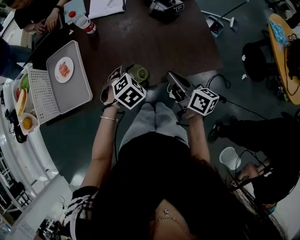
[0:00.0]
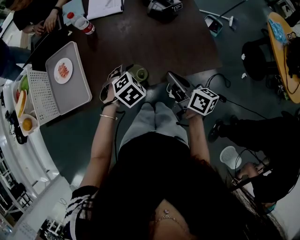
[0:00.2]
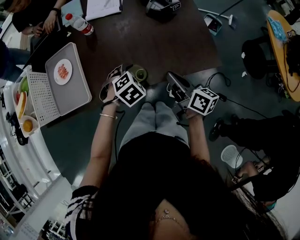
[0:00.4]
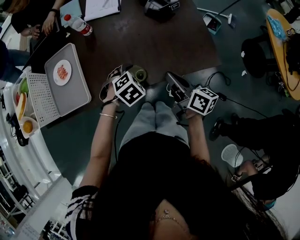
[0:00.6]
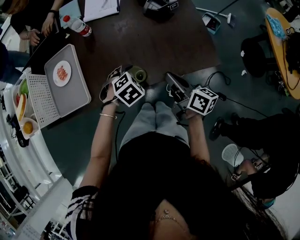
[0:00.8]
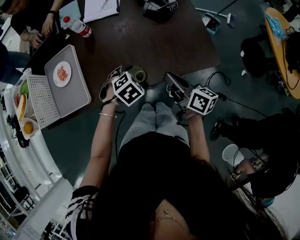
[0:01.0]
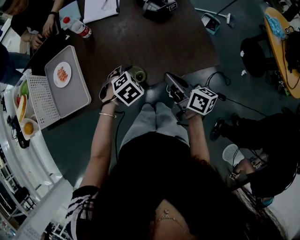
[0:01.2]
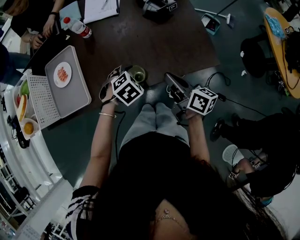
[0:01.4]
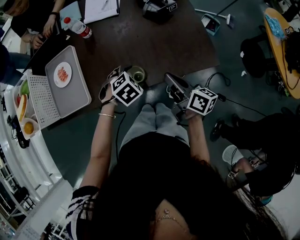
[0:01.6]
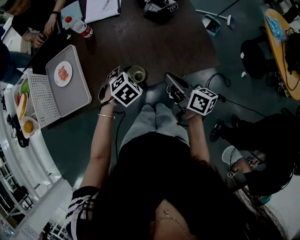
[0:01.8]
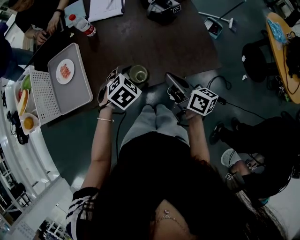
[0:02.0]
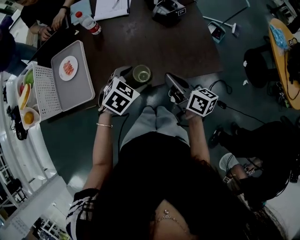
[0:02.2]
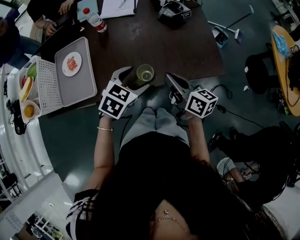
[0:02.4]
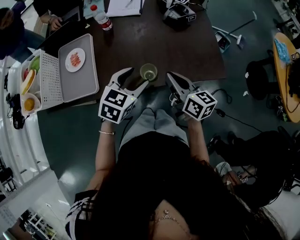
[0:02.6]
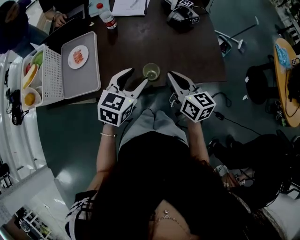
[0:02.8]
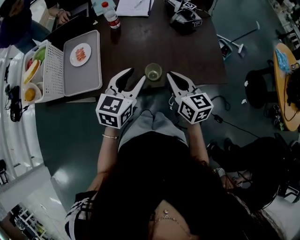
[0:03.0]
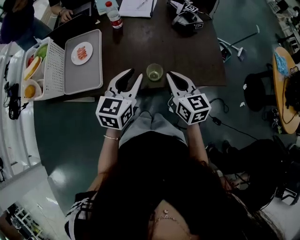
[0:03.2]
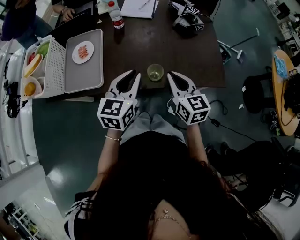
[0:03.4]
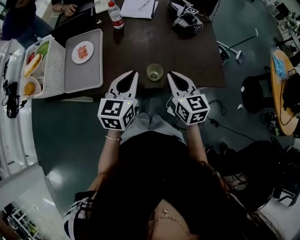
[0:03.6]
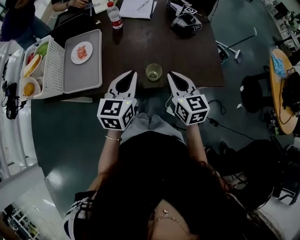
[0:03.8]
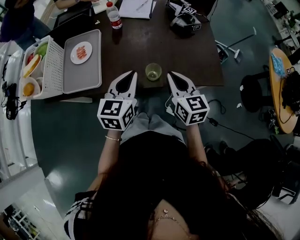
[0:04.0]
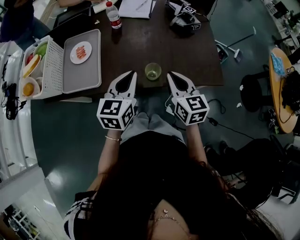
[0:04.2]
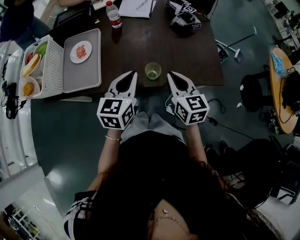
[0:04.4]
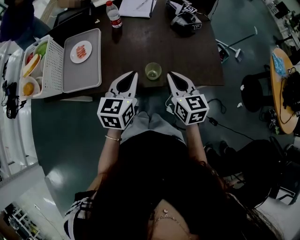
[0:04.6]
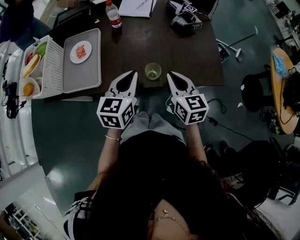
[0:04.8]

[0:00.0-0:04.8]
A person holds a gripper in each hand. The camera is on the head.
0.0 to 1.6 s: There are only small adjustments of the grippers.
1.6 to 3.2 s: The left gripper is displaced upward and to the left by some 20 cm, points its fingers about 50 degrees further upward, and closes its fingers, while the right gripper shifts some 10 cm to the left and upward, and rolls counterclockwise, seen from behind, by approximately 40 degrees.
3.2 to 4.8 s: There are only small adjustments of the grippers.

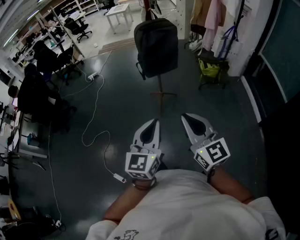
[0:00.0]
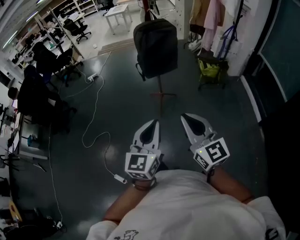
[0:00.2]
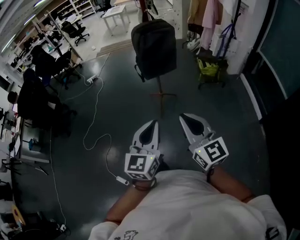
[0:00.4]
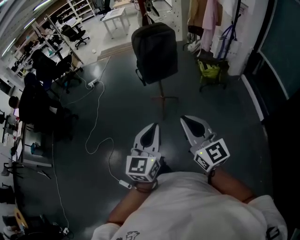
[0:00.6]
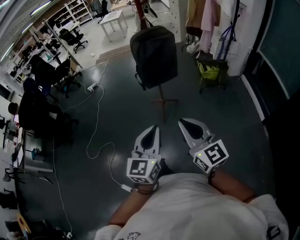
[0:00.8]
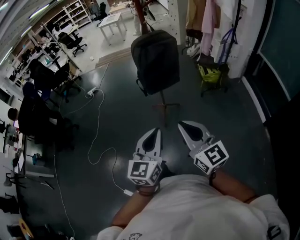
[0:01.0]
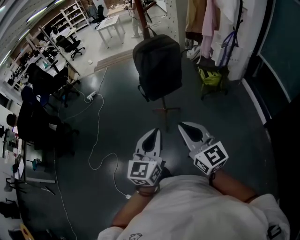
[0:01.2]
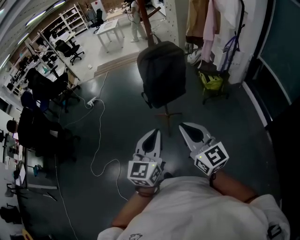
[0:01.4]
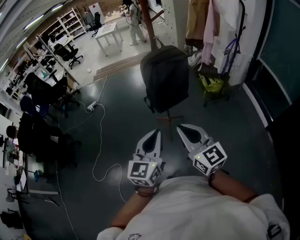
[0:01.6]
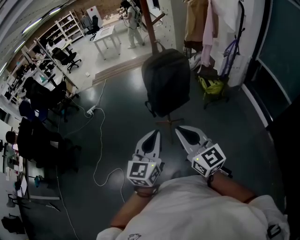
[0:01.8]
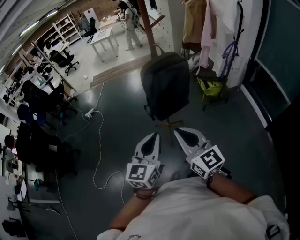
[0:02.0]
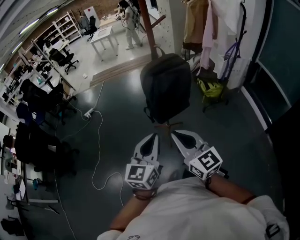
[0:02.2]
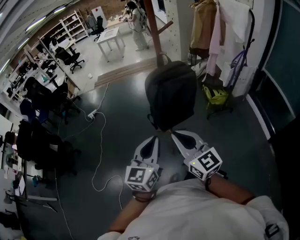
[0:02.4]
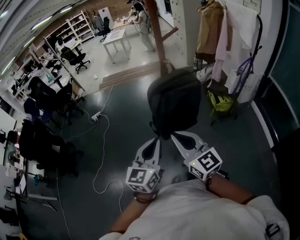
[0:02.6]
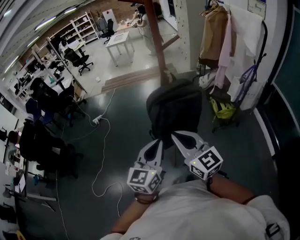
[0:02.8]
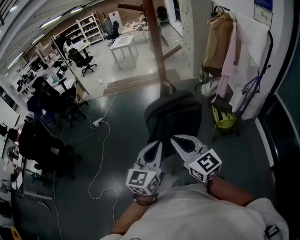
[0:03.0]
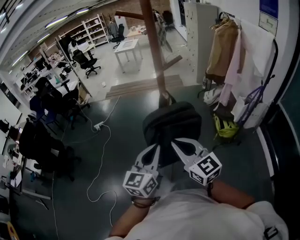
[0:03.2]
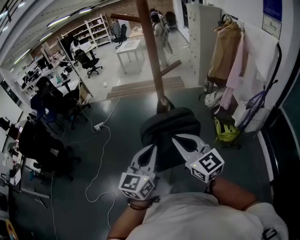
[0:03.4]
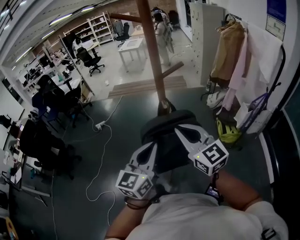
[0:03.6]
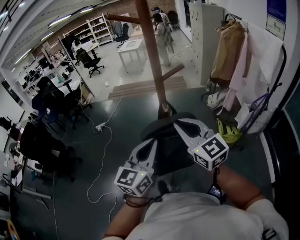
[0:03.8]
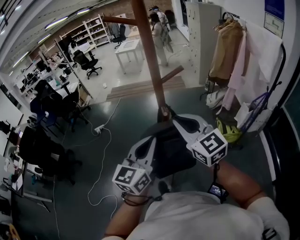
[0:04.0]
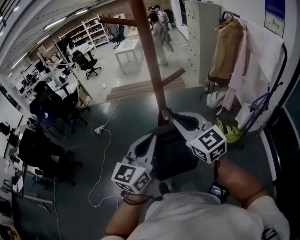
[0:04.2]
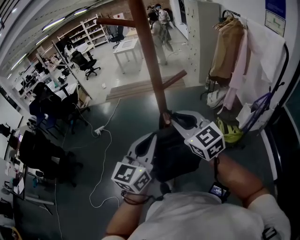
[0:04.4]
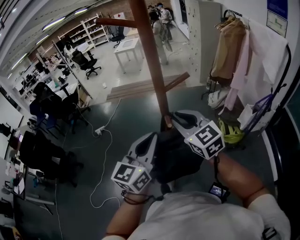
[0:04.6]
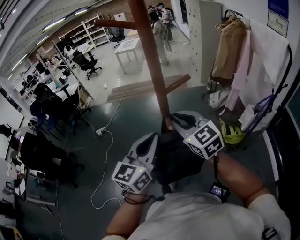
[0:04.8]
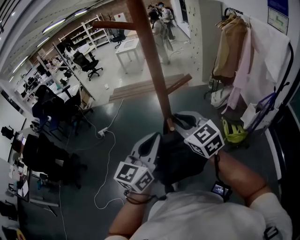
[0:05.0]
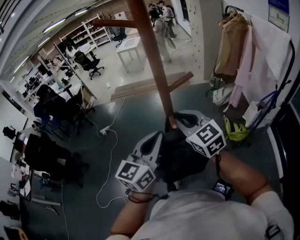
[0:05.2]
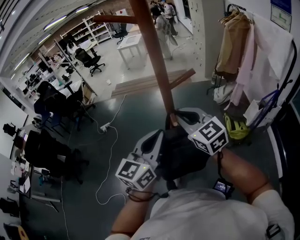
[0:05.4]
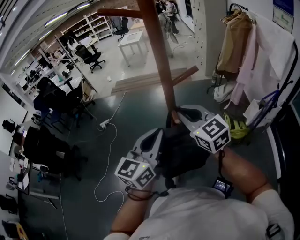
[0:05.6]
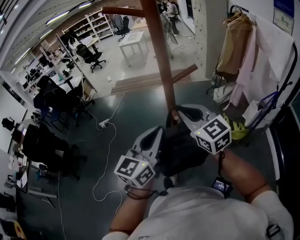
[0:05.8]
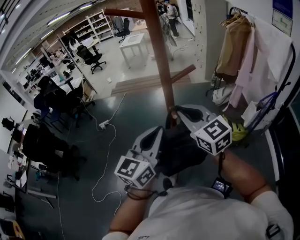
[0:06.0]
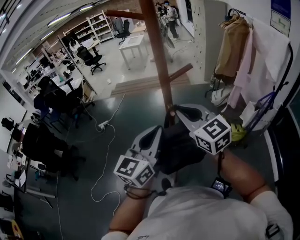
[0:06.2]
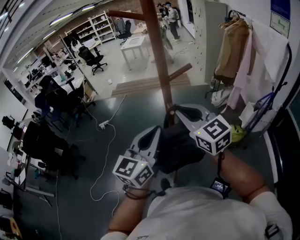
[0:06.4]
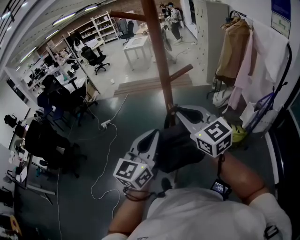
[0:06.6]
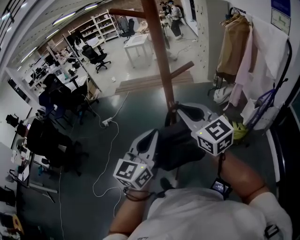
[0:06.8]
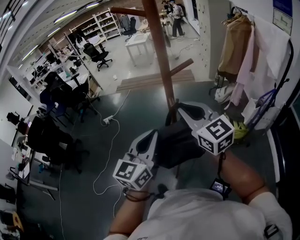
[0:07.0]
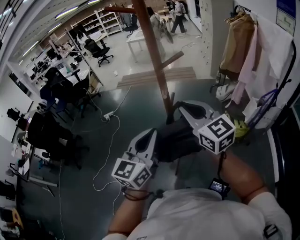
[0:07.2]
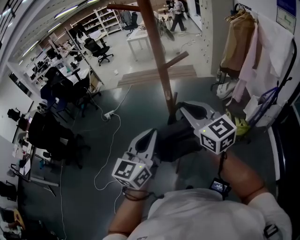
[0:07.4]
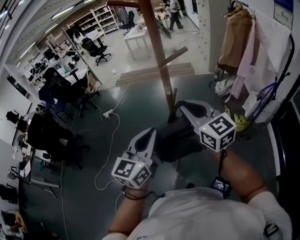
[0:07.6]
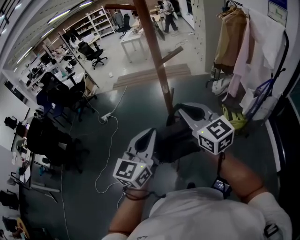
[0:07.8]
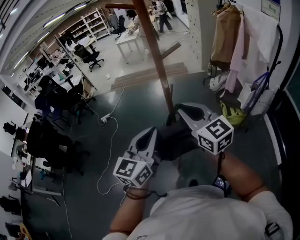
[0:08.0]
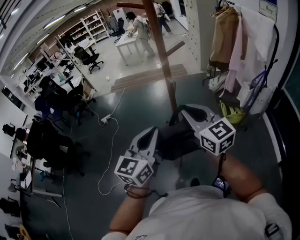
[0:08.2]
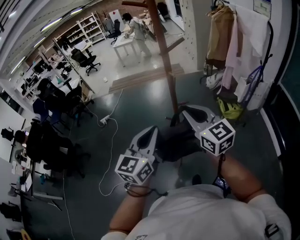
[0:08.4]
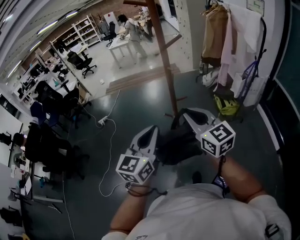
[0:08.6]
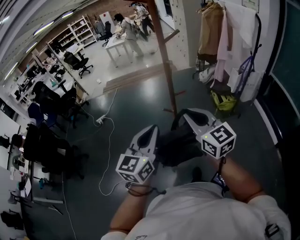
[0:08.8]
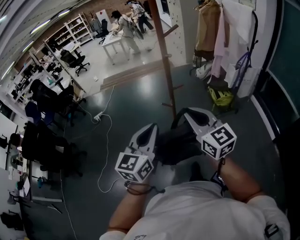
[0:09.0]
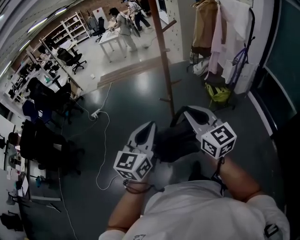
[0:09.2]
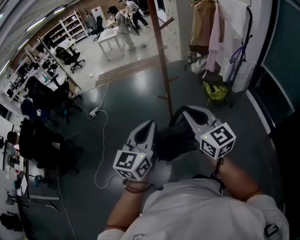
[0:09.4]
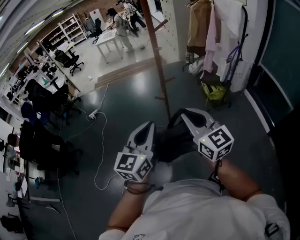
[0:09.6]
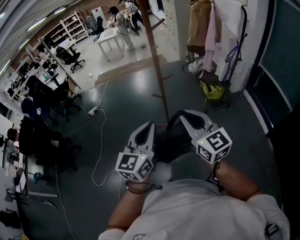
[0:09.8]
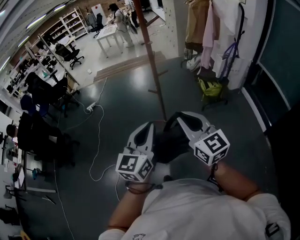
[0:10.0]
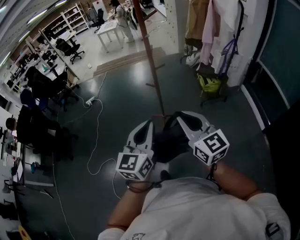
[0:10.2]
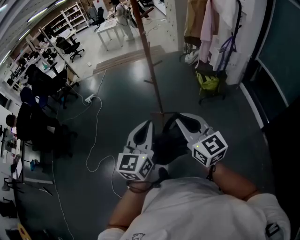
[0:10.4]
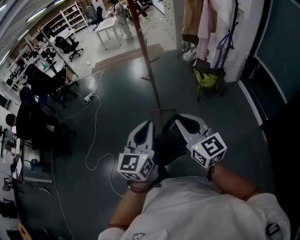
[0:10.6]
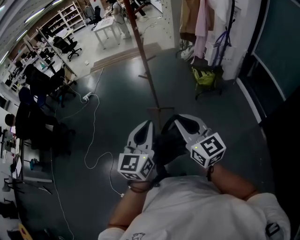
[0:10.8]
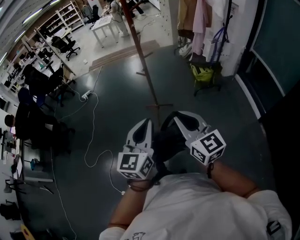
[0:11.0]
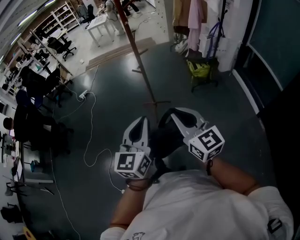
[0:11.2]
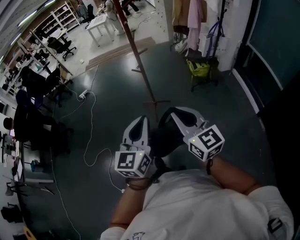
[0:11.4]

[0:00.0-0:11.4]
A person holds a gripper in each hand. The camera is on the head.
0.0 to 1.4 s: The two grippers go approximately 20 cm forward.
1.4 to 2.8 s: Both grippers travel together forward, some 25 cm.
2.8 to 4.2 s: The right gripper is displaced forward and to the right by roughly 25 cm; the left gripper travels forward and upward by approximately 20 cm.
4.2 to 5.6 s: The right gripper goes some 5 cm forward.
5.6 to 7.2 s: The two grippers go about 10 cm backward.
7.2 to 8.6 s: The grippers both shift backward and to the left by approximately 20 cm.
8.6 to 10.0 s: Both grippers travel together backward, about 20 cm.
10.0 to 11.4 s: Both grippers move backward and to the right, some 15 cm.

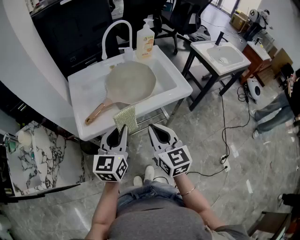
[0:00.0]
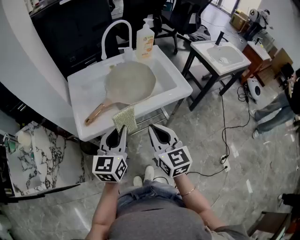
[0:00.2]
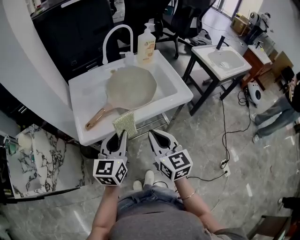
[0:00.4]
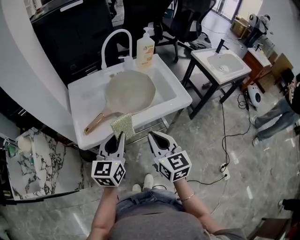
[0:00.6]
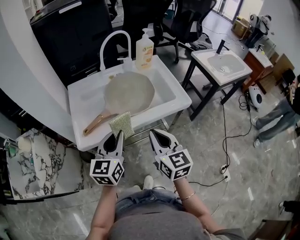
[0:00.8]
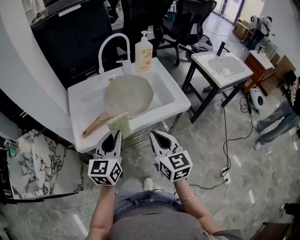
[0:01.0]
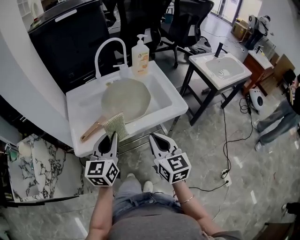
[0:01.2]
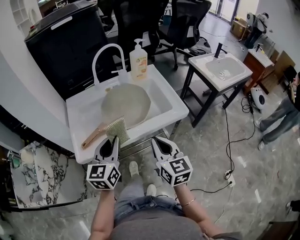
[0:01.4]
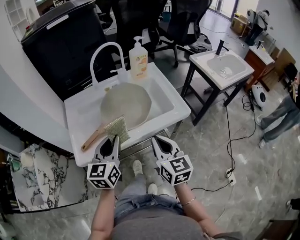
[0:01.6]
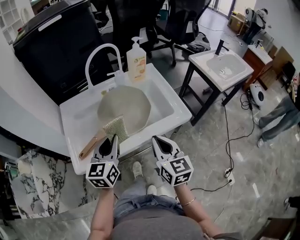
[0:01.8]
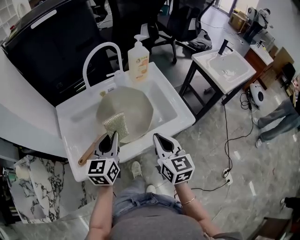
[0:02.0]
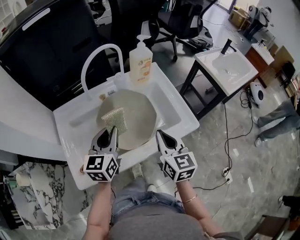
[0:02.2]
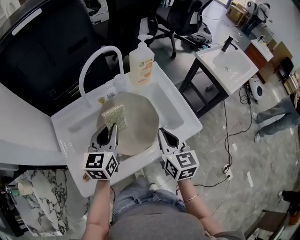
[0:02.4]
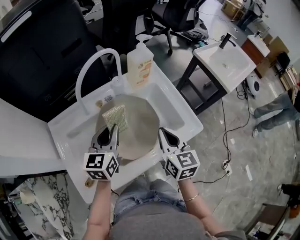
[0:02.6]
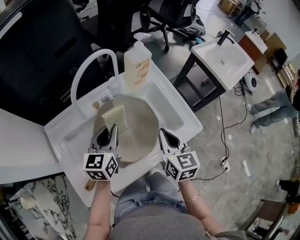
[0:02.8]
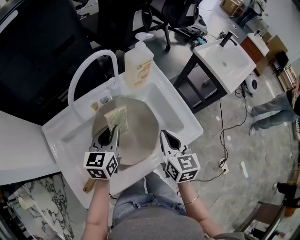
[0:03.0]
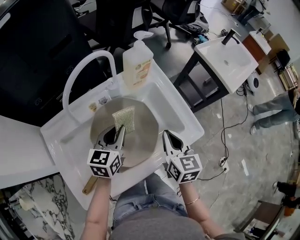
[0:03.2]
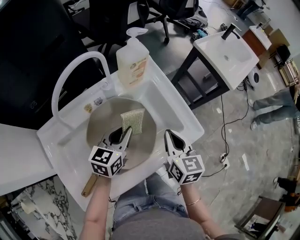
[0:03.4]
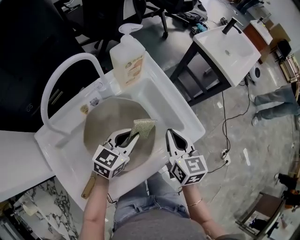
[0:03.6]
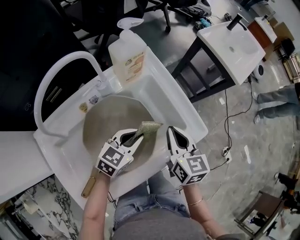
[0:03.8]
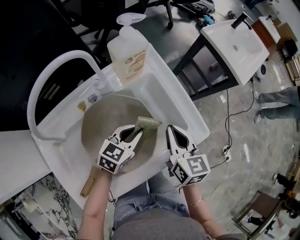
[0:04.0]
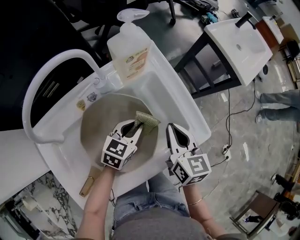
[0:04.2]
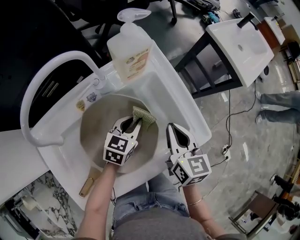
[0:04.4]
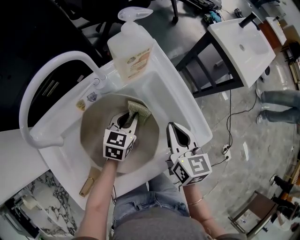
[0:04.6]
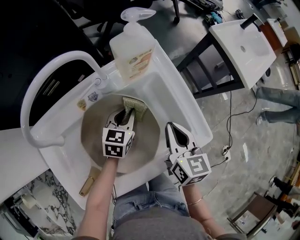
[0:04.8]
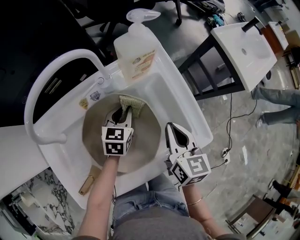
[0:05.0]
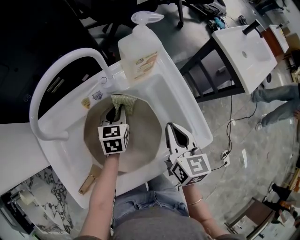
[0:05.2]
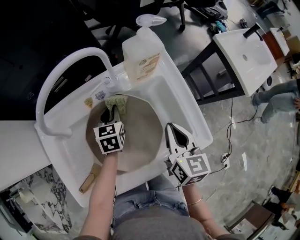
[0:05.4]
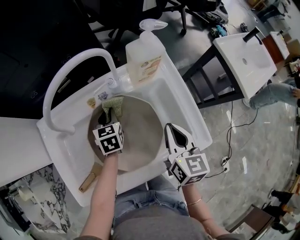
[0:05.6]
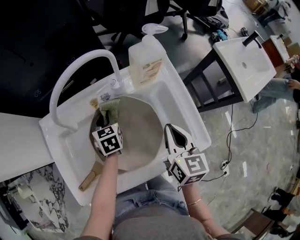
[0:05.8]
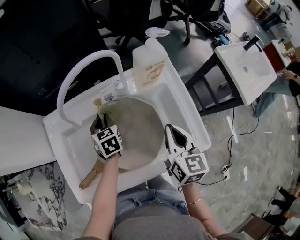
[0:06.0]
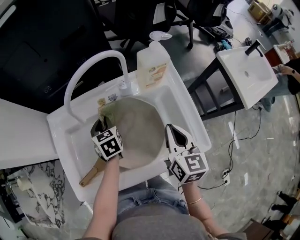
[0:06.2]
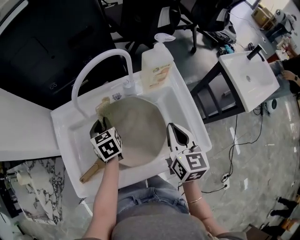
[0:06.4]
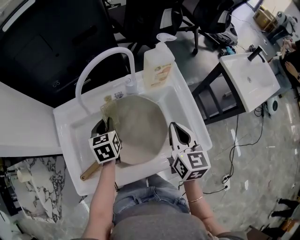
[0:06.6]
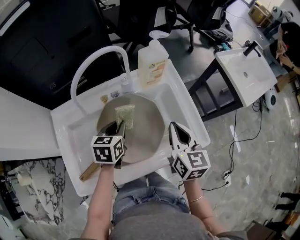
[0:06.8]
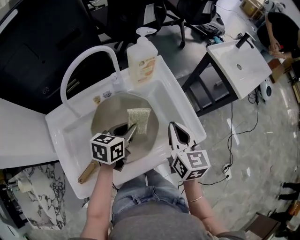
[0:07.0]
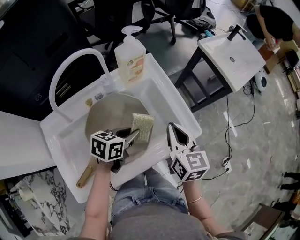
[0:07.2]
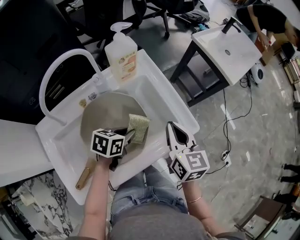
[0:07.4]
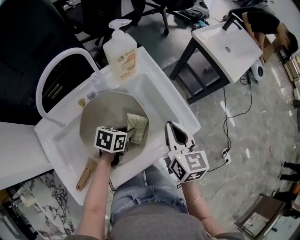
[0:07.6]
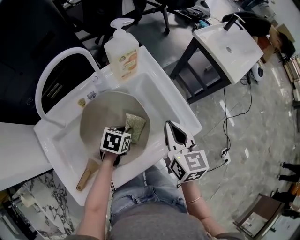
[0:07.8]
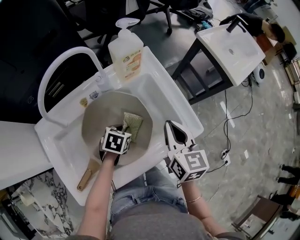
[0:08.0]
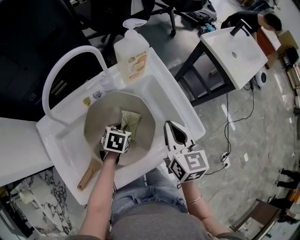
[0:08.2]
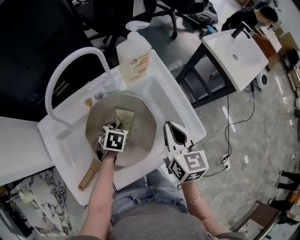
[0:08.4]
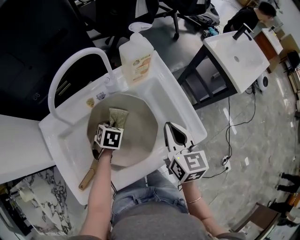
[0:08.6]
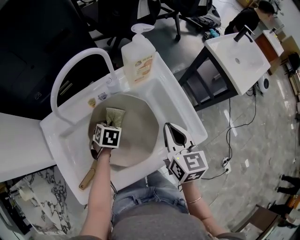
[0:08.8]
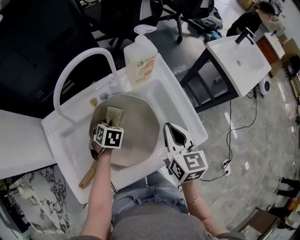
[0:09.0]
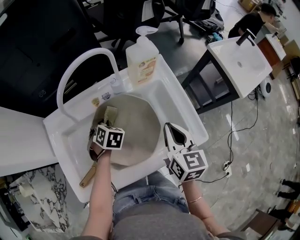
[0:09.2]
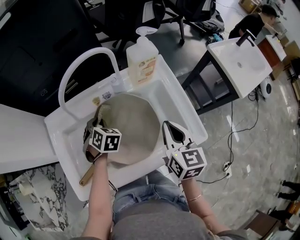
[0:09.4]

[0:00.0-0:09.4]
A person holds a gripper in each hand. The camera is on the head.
0.0 to 1.6 s: The right gripper travels forward and to the right by approximately 10 cm; the left gripper heads forward, covering about 10 cm.
1.6 to 3.2 s: Both grippers travel together forward, roughly 25 cm. The right gripper changes its angle by some 20 degrees. The left gripper changes its angle by roughly 20 degrees.
3.2 to 4.8 s: The left gripper shifts approximately 15 cm downward and forward. Meanwhile the right gripper shifts approximately 5 cm forward.
4.8 to 6.2 s: The left gripper moves some 20 cm, and turns by roughly 50 degrees. The right gripper shifts some 5 cm upward.
6.2 to 7.8 s: The right gripper ends up roughly 5 cm from where it was. The left gripper shifts by approximately 20 cm, and rotates roughly 60 degrees.
7.8 to 9.4 s: The left gripper ends up approximately 20 cm from where it was, and rotates about 50 degrees. Meanwhile the right gripper shifts by roughly 5 cm.
